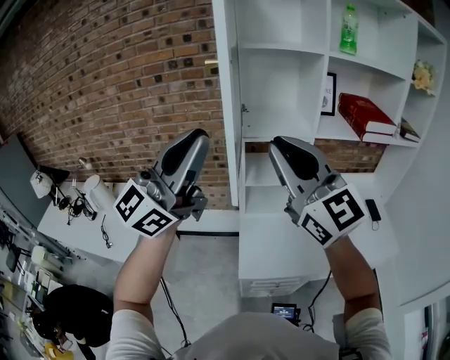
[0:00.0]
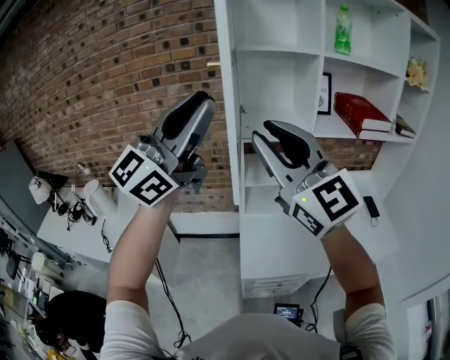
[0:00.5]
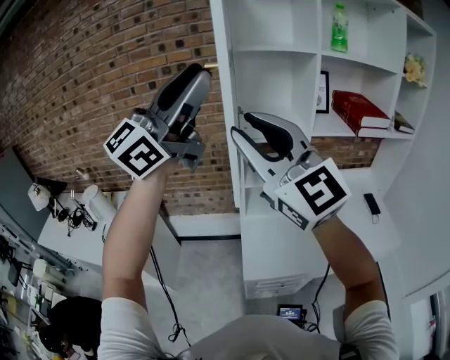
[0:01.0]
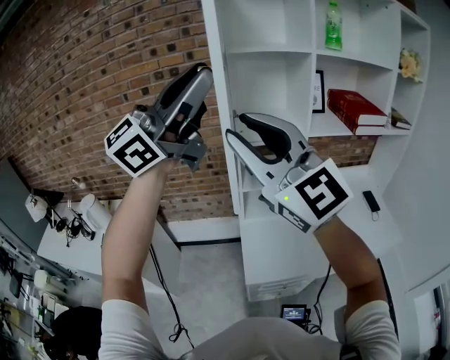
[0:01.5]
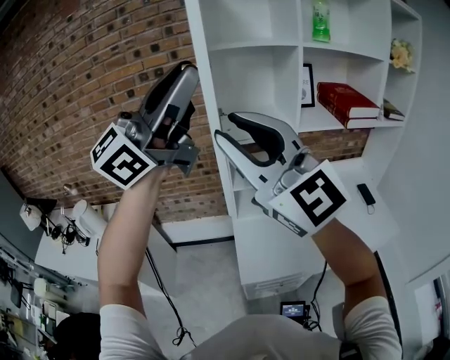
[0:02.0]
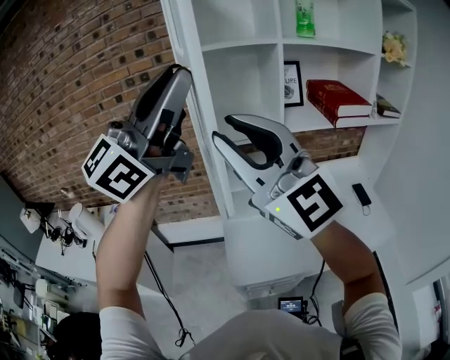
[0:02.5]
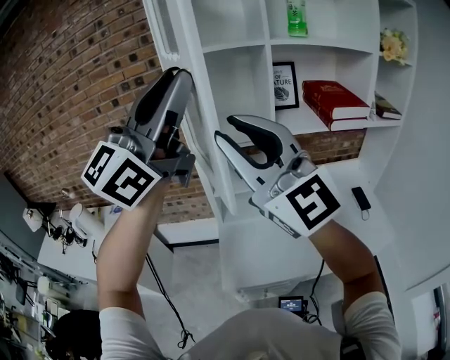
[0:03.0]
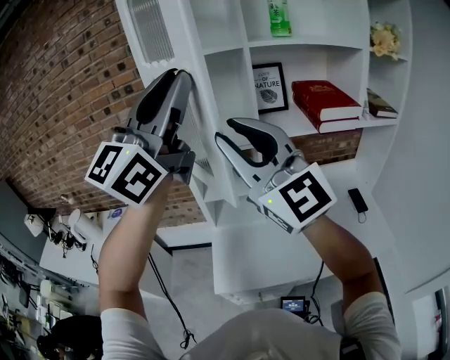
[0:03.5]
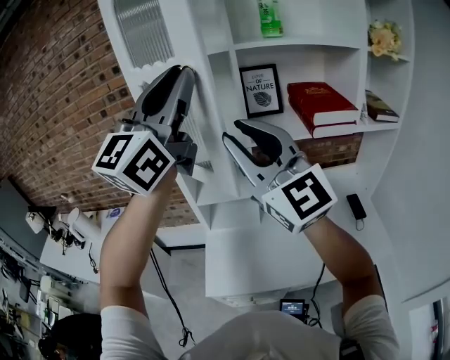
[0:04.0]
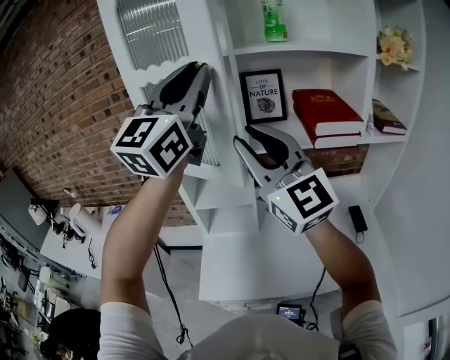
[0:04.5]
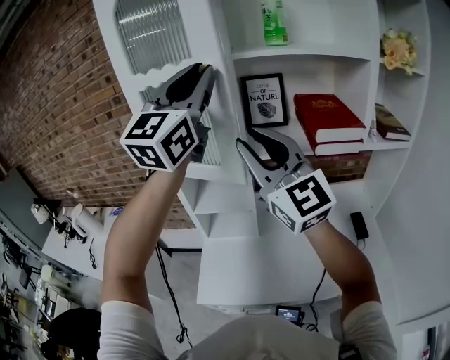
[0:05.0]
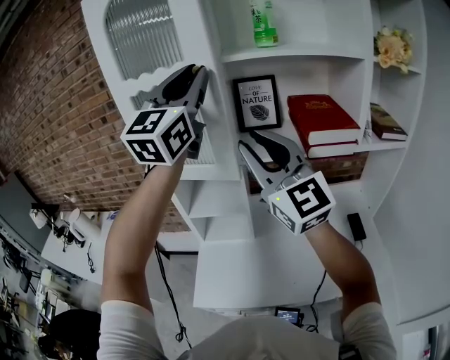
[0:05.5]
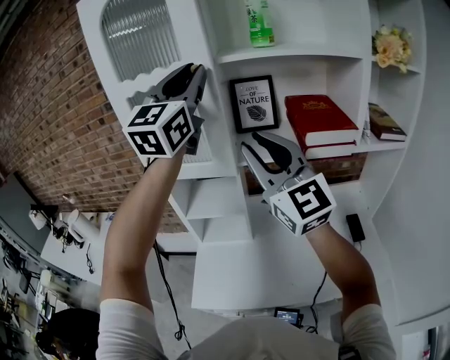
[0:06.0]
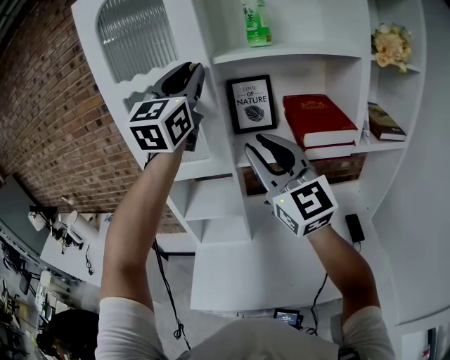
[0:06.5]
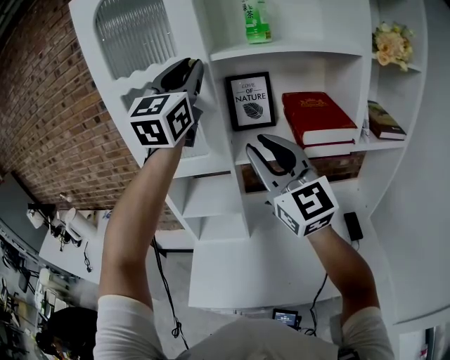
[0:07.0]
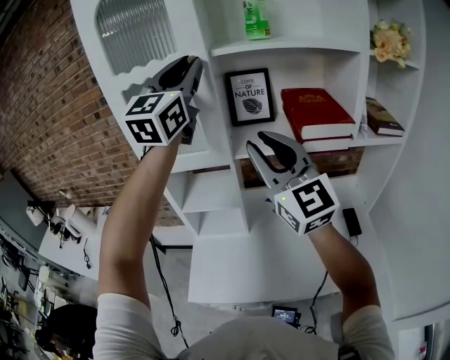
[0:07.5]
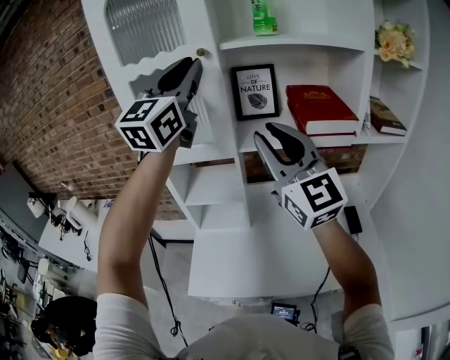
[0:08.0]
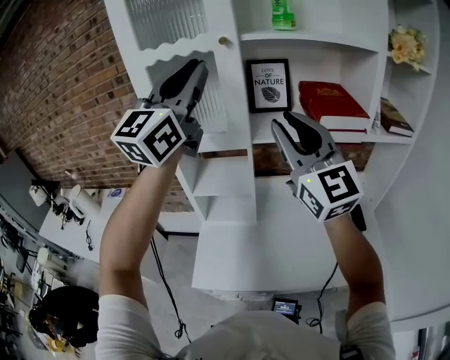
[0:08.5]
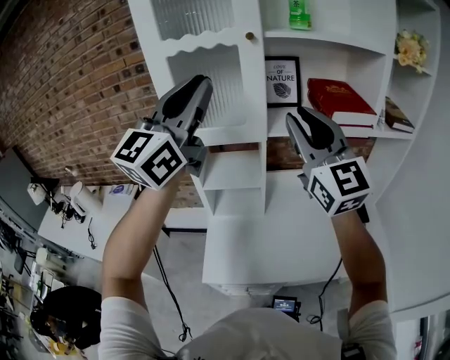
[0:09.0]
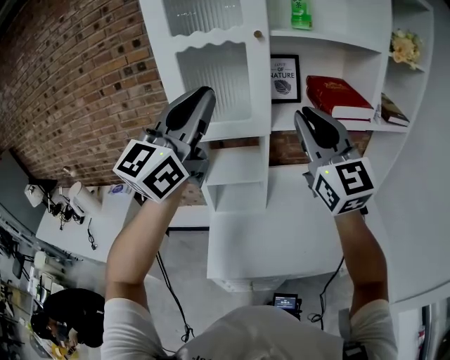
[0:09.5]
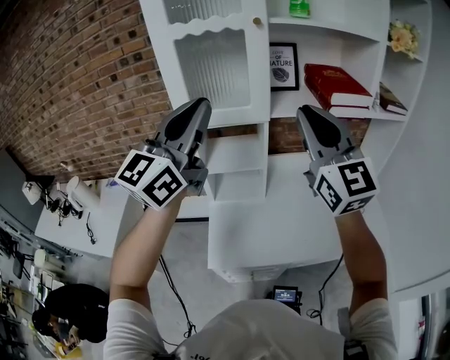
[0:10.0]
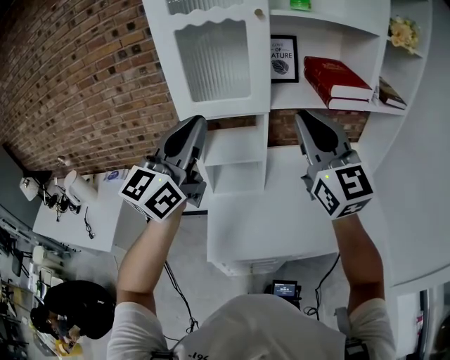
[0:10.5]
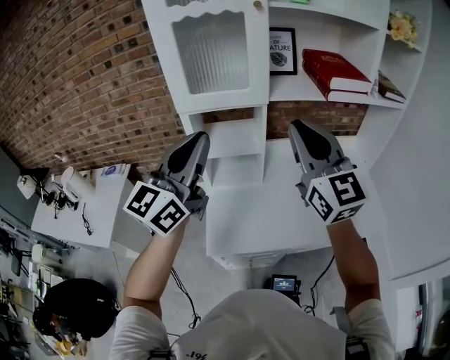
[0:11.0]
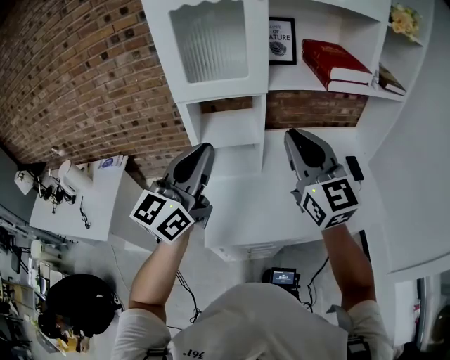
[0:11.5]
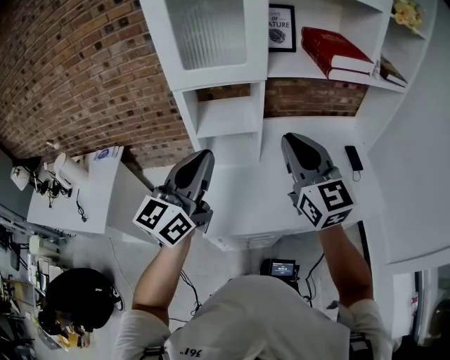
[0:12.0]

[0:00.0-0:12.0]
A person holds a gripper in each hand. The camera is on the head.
0:00.0 to 0:02.0: The right gripper shifts by approximately 5 cm, and opens its fingers; the left gripper shifts roughly 10 cm upward and forward.
0:02.0 to 0:04.0: Both grippers travel together to the right and forward, some 25 cm. The left gripper rotates about 30 degrees.
0:04.0 to 0:06.0: The left gripper shifts roughly 15 cm forward and to the right. The right gripper heads to the right and forward, covering some 15 cm.
0:06.0 to 0:08.0: There are only small adjustments of the grippers.
0:08.0 to 0:10.0: The left gripper shifts approximately 25 cm backward, downward and to the left, while the right gripper goes about 10 cm backward.
0:10.0 to 0:12.0: The two grippers go some 15 cm downward.

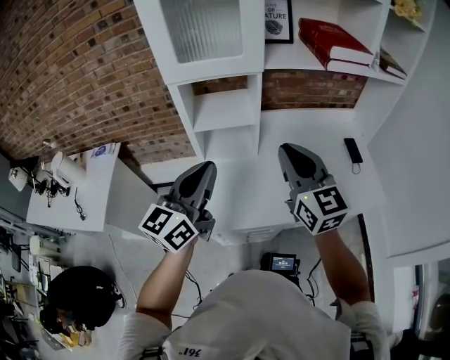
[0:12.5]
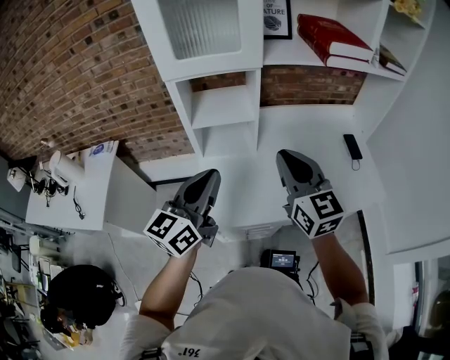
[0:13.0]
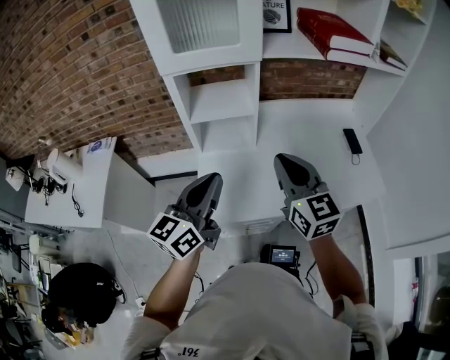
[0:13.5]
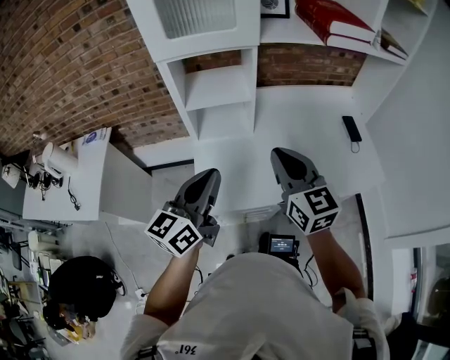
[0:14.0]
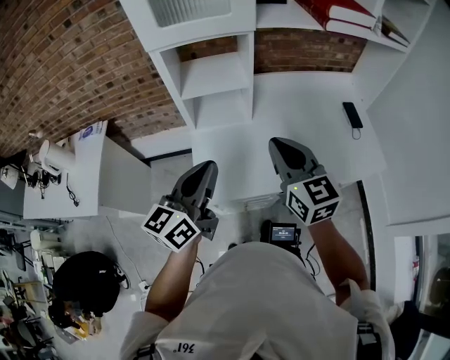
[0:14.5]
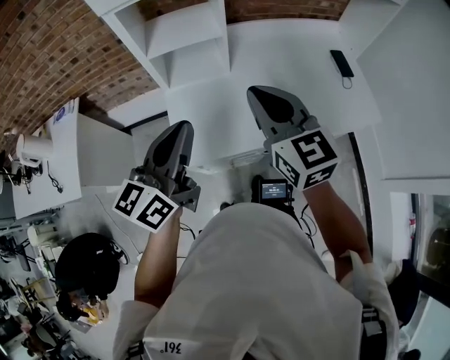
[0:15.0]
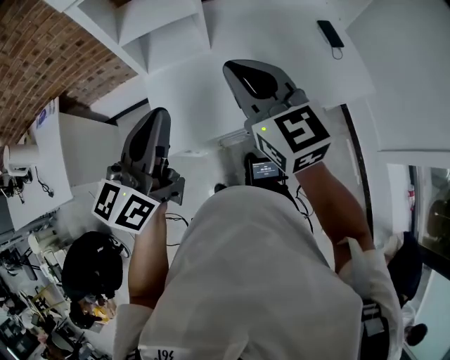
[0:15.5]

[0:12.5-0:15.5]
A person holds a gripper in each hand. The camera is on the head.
0:12.5 to 0:14.0: The two grippers go roughly 5 cm downward.
0:14.0 to 0:15.5: There are only small adjustments of the grippers.

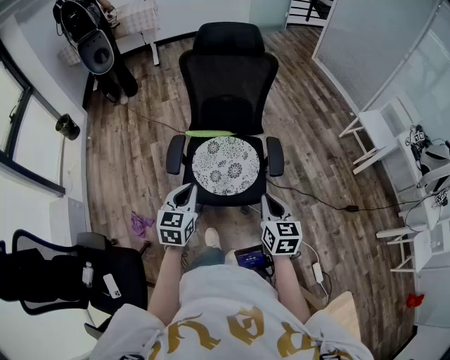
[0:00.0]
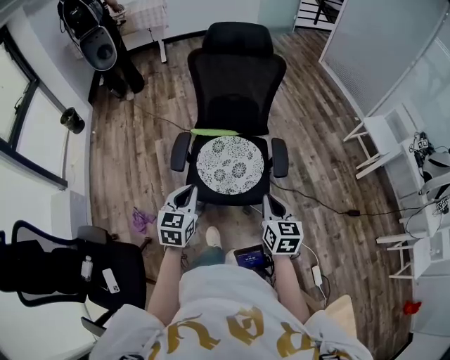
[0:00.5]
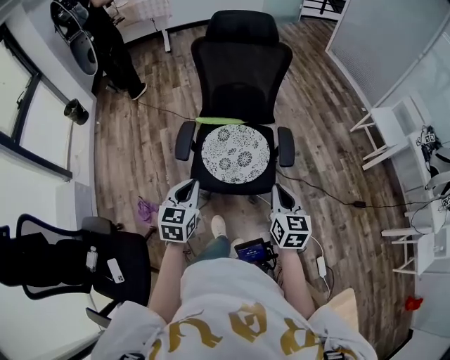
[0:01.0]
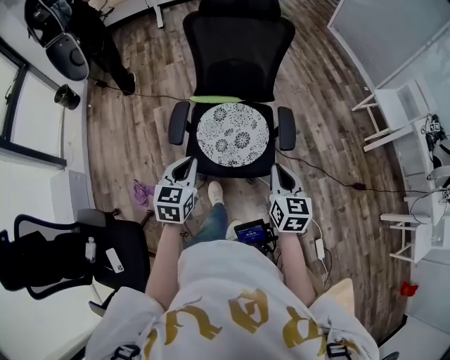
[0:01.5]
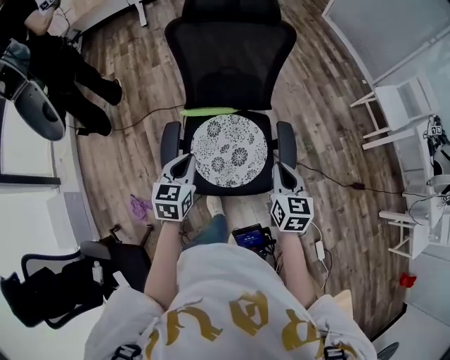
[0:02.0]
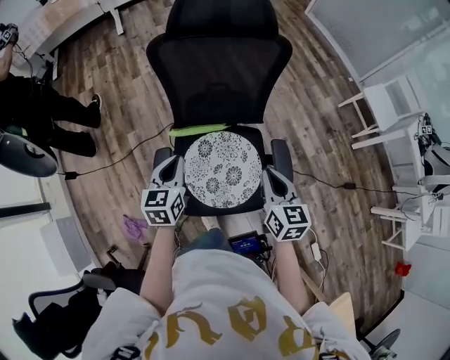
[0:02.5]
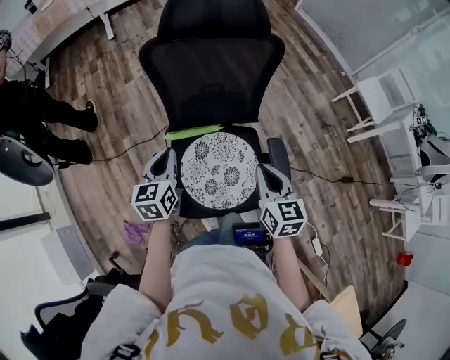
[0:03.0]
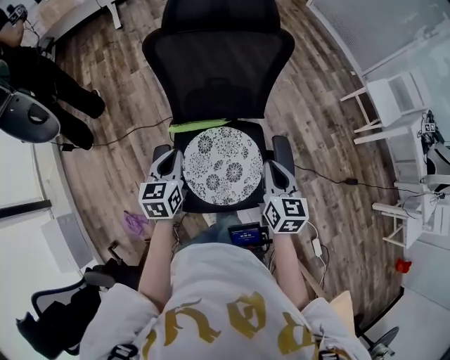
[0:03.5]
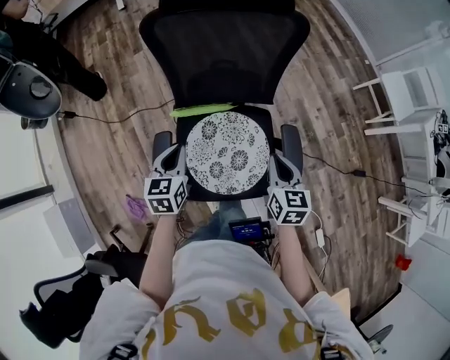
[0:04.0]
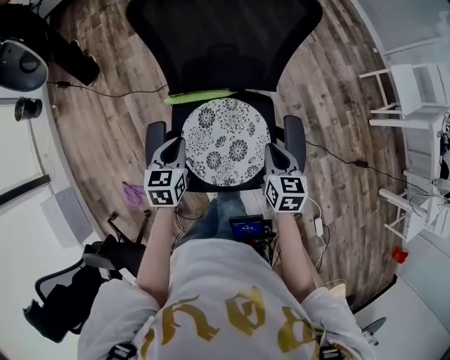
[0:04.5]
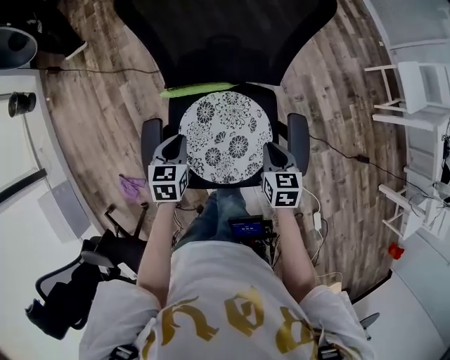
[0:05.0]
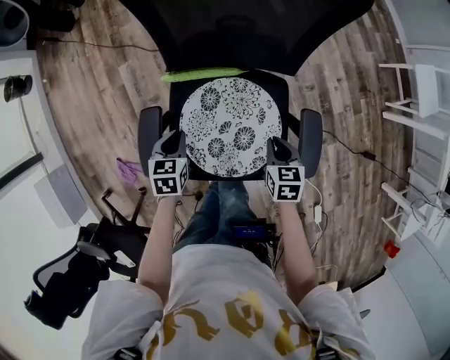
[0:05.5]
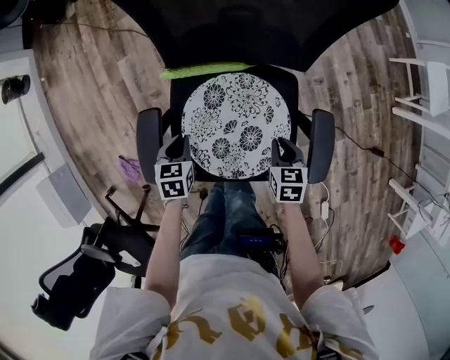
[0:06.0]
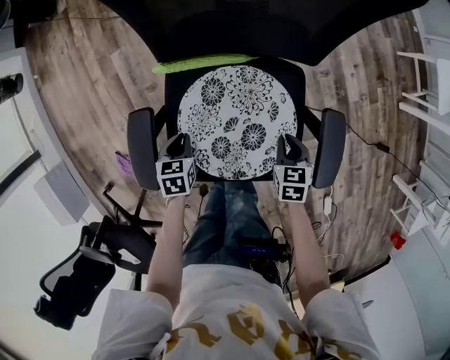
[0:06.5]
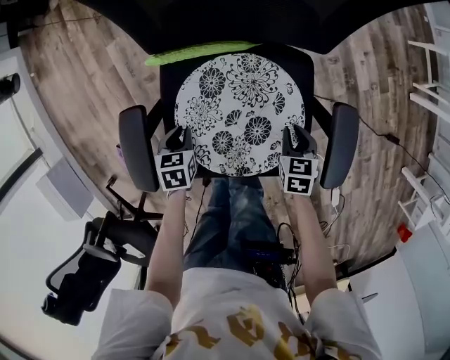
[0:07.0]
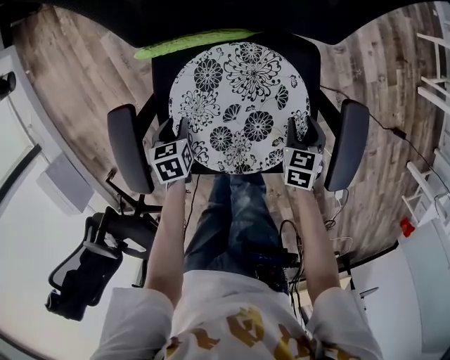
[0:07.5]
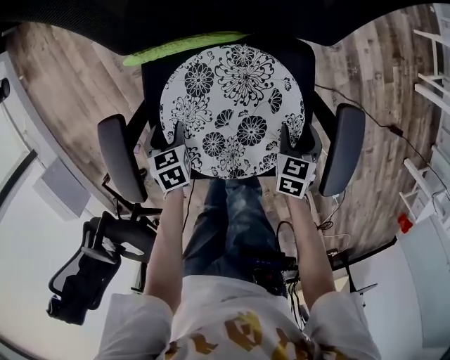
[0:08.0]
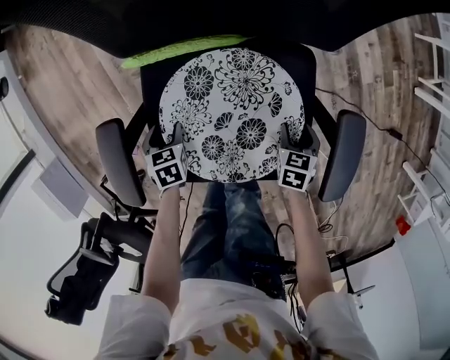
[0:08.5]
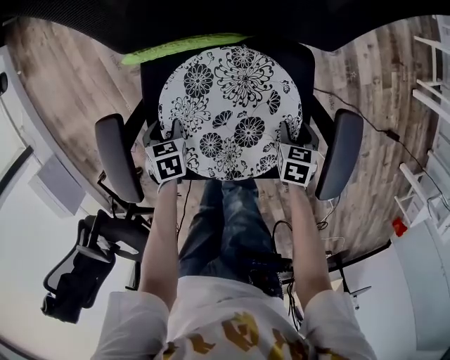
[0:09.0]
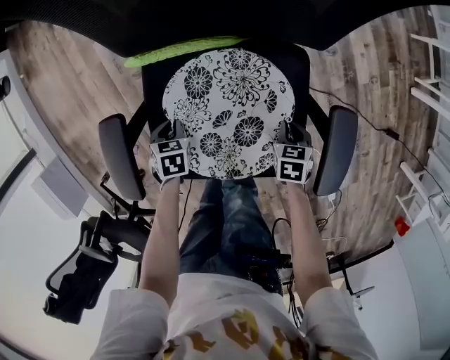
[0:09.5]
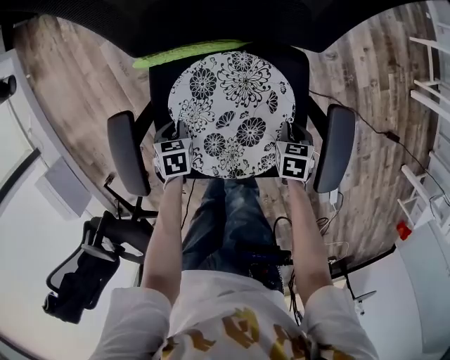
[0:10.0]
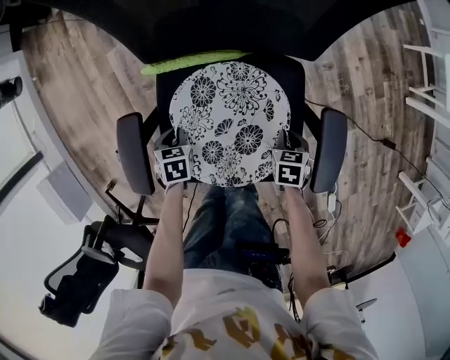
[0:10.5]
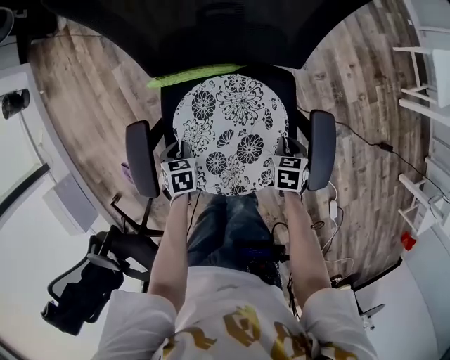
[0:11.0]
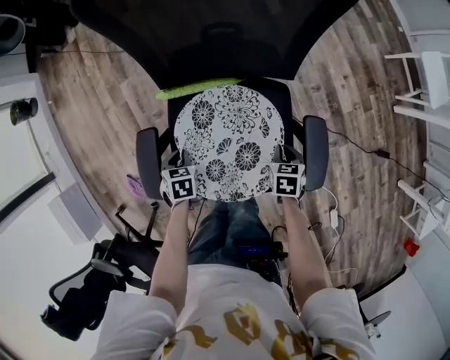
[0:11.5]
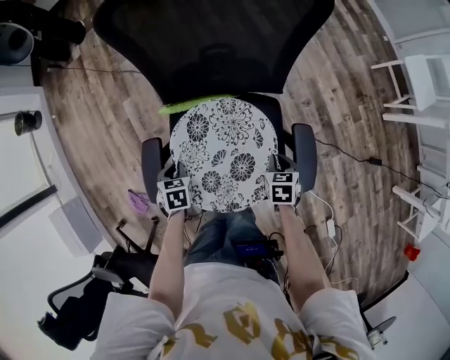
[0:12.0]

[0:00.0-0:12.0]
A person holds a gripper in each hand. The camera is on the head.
0:00.0 to 0:02.0: The grippers both shift forward by about 20 cm.
0:02.0 to 0:04.0: Both grippers move forward and downward, about 15 cm.
0:04.0 to 0:06.0: Both grippers travel together downward, some 25 cm. The left gripper changes its angle by roughly 30 degrees. The right gripper swivels approximately 30 degrees.
0:06.0 to 0:08.0: The left gripper is displaced downward by some 15 cm, and opens, while the right gripper shifts roughly 15 cm downward and to the right, and opens.
0:08.0 to 0:10.0: The right gripper closes. Meanwhile the left gripper closes up.
0:10.0 to 0:12.0: The grippers both shift upward by about 15 cm.
